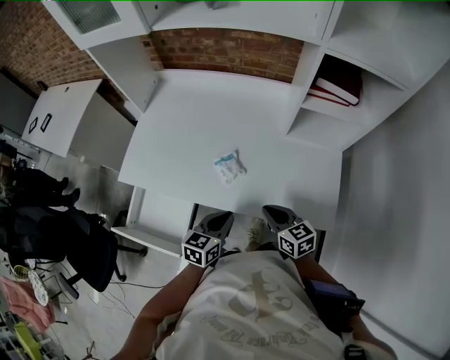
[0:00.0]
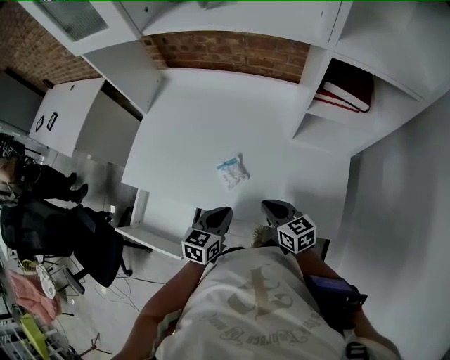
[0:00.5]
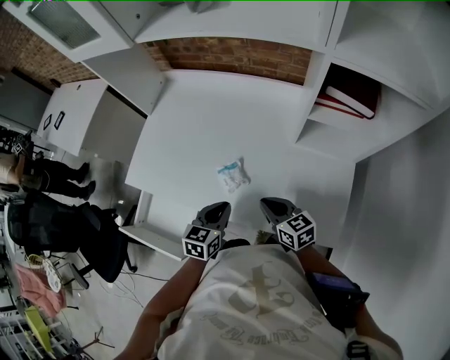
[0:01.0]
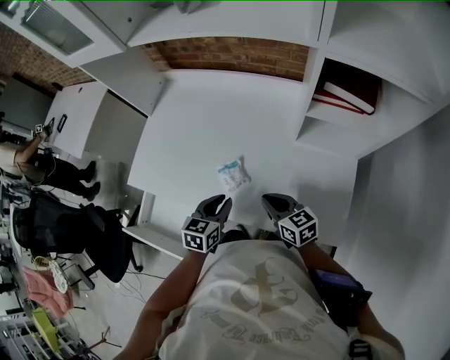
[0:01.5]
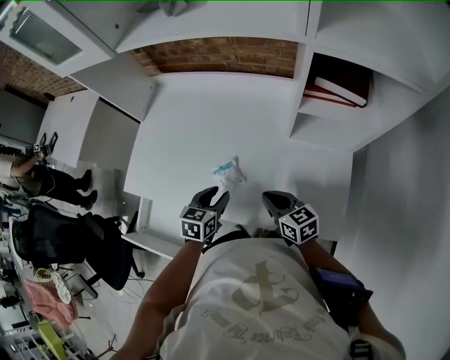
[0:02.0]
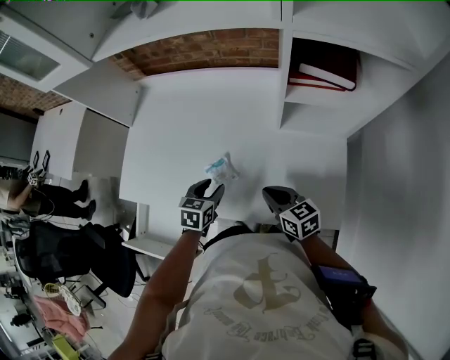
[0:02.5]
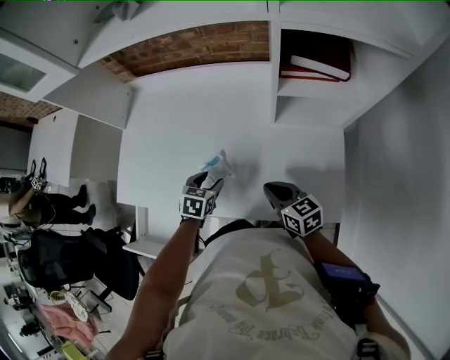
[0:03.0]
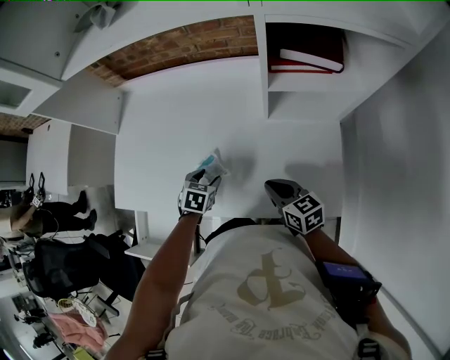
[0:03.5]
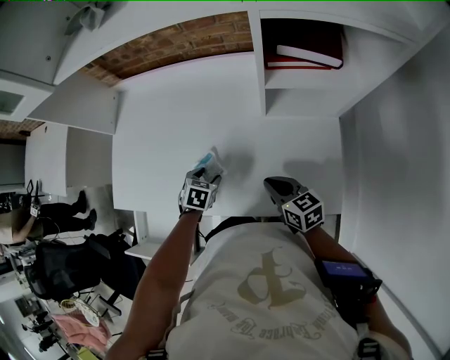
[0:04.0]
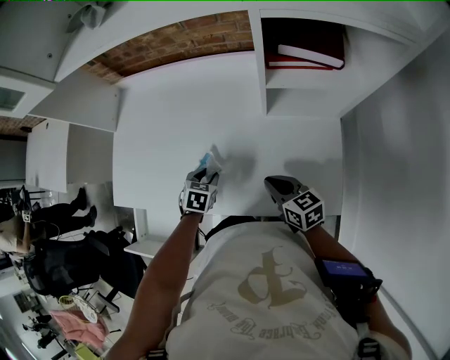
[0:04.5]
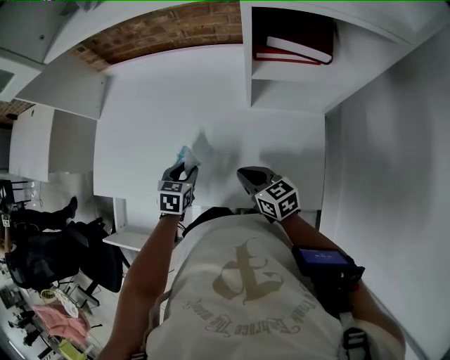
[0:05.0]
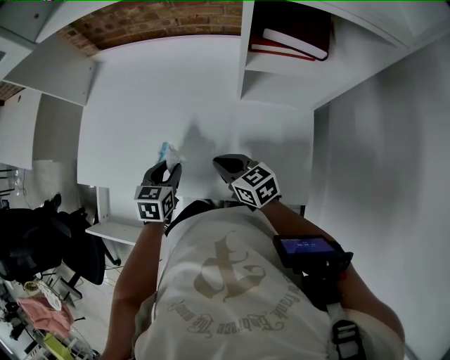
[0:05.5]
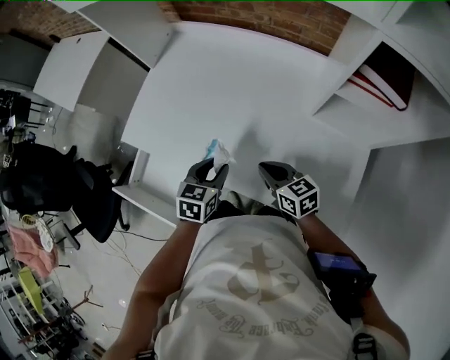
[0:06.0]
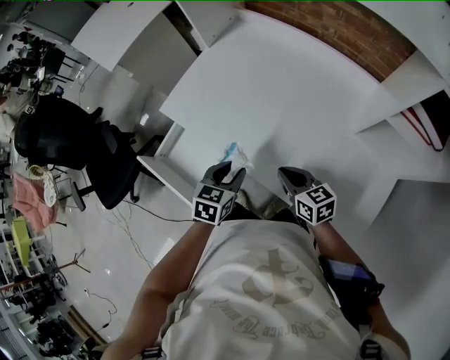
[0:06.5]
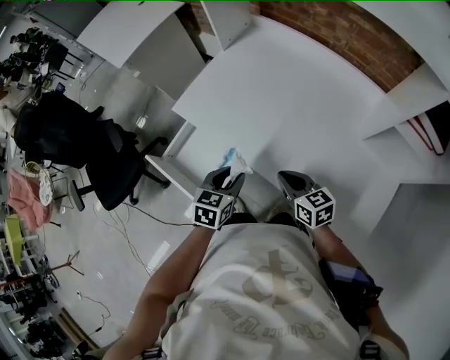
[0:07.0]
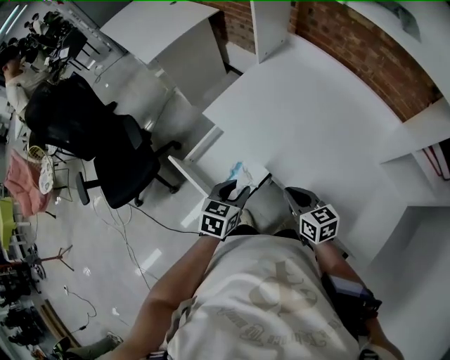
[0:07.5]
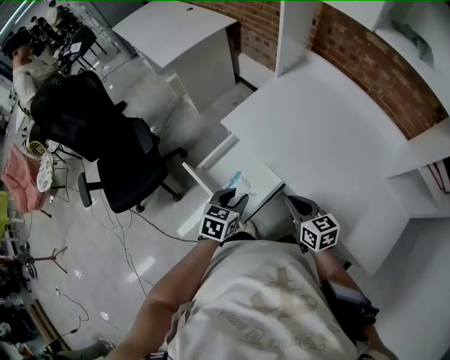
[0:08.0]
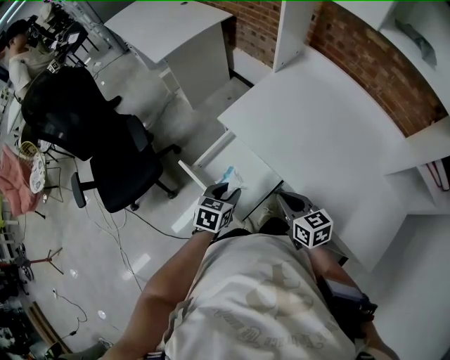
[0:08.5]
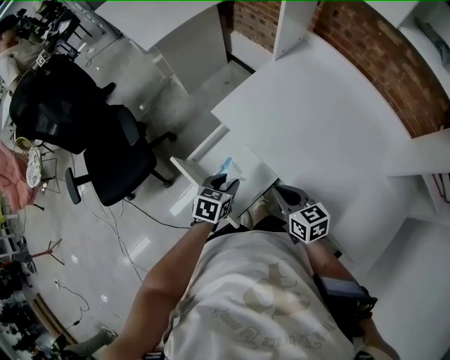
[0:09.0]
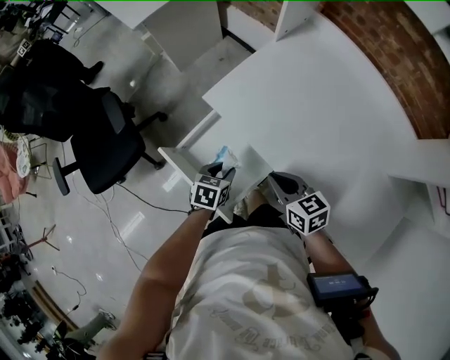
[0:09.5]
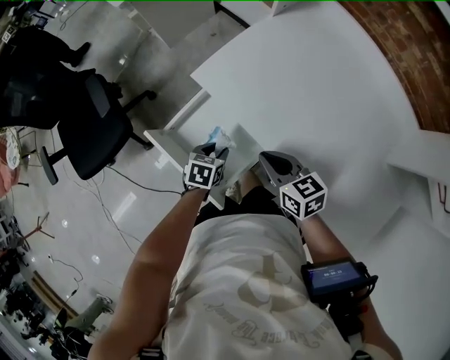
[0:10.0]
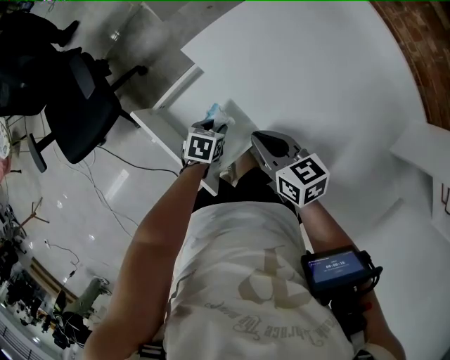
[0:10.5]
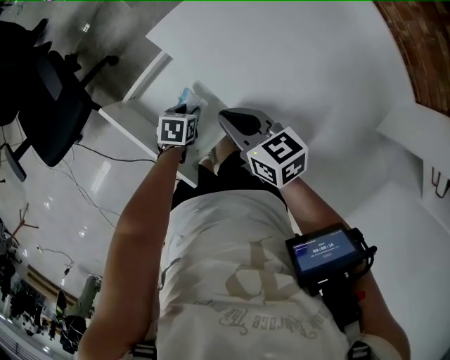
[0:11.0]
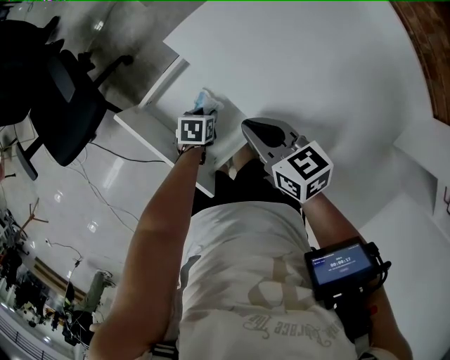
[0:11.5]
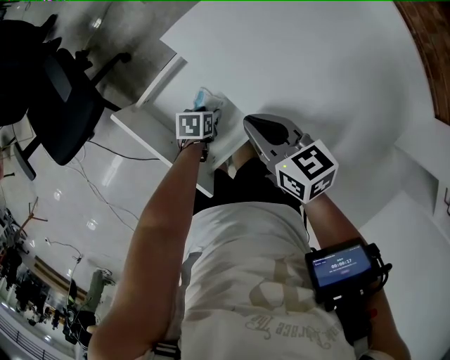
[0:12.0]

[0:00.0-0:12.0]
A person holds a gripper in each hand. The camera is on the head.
0:00.0 to 0:02.0: The grippers both shift forward by about 10 cm. The left gripper opens.
0:02.0 to 0:04.0: The left gripper travels downward and forward by approximately 15 cm, swivels approximately 30 degrees, and opens up. Meanwhile the right gripper shifts by approximately 5 cm.
0:04.0 to 0:06.0: The left gripper heads upward and backward, covering about 15 cm, changes its angle by approximately 30 degrees, and closes its fingers; the right gripper heads to the left, covering about 10 cm, and rotates about 20 degrees.
0:06.0 to 0:08.0: The grippers both shift to the left by about 30 cm.
0:08.0 to 0:10.0: The right gripper travels forward and downward by about 15 cm. Meanwhile the left gripper goes approximately 20 cm downward and forward, and swivels some 20 degrees.
0:10.0 to 0:12.0: The left gripper is displaced downward by approximately 10 cm, and swivels roughly 20 degrees.

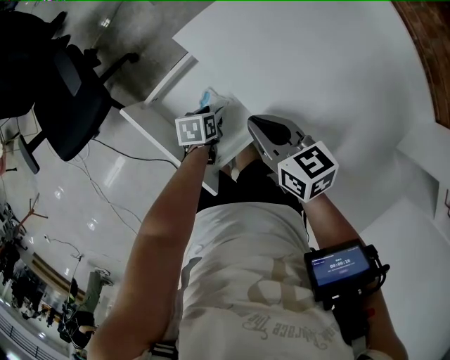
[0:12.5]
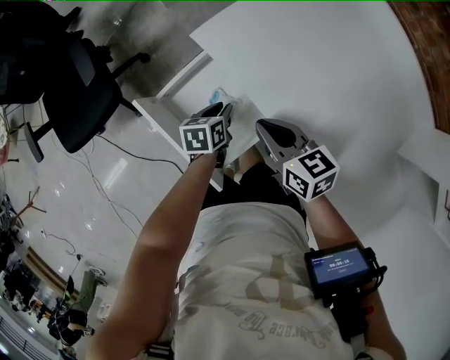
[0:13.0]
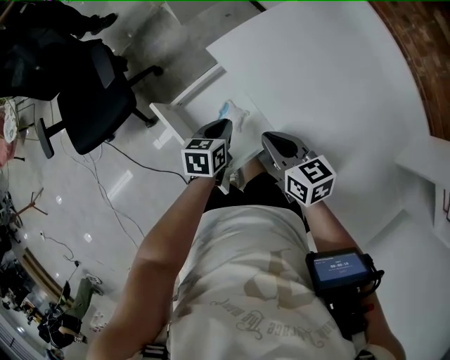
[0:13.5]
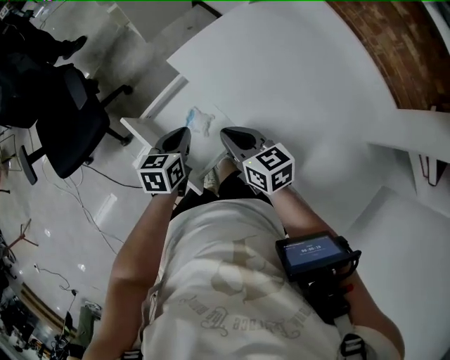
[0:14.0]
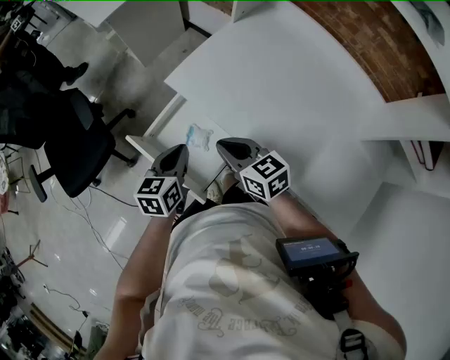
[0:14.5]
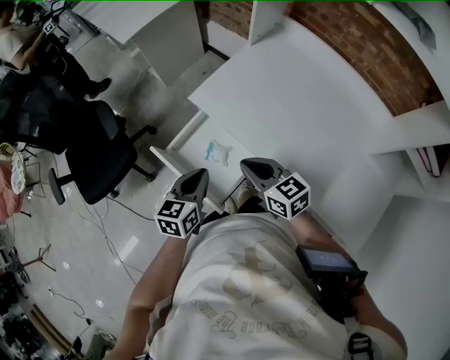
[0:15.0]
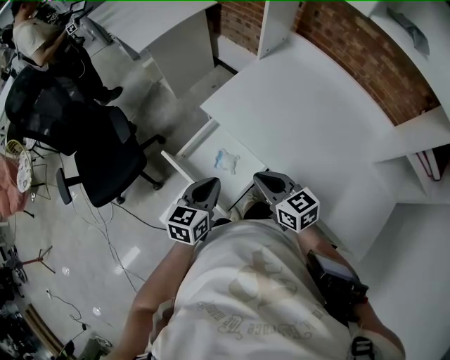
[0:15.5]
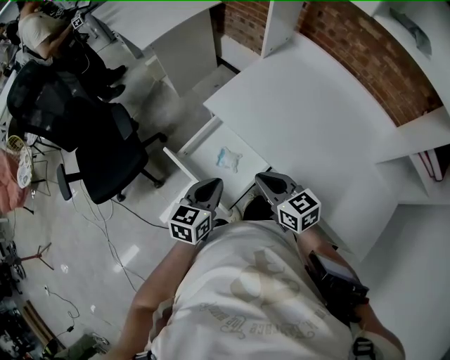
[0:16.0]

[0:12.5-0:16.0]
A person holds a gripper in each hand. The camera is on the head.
0:12.5 to 0:14.5: The right gripper travels upward by some 5 cm. Meanwhile the left gripper shifts roughly 25 cm upward, swivels some 40 degrees, and closes.
0:14.5 to 0:16.0: Both grippers travel together backward, approximately 5 cm.

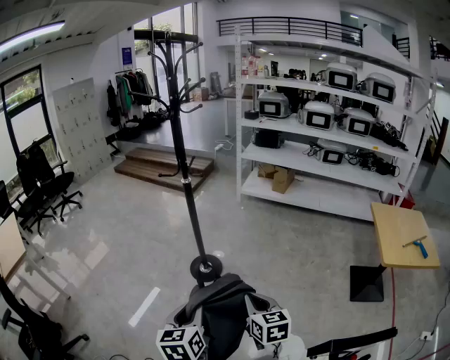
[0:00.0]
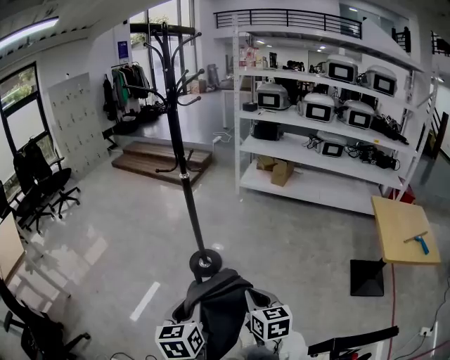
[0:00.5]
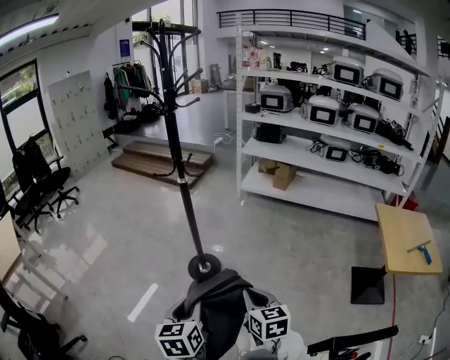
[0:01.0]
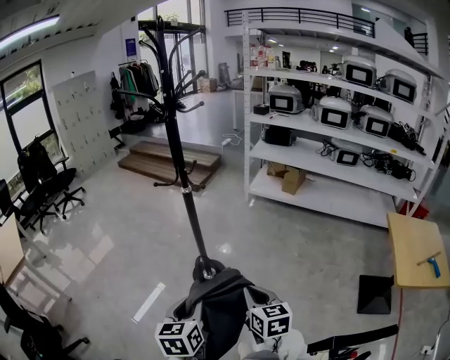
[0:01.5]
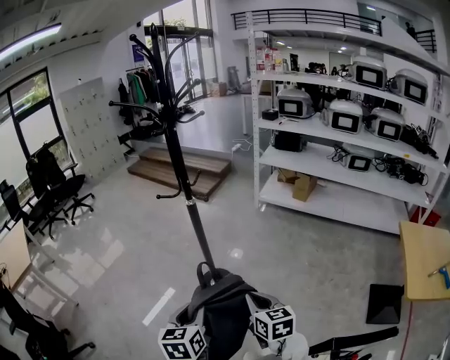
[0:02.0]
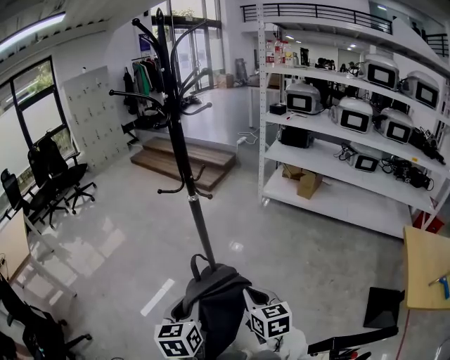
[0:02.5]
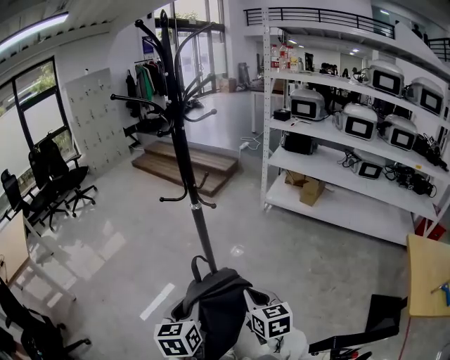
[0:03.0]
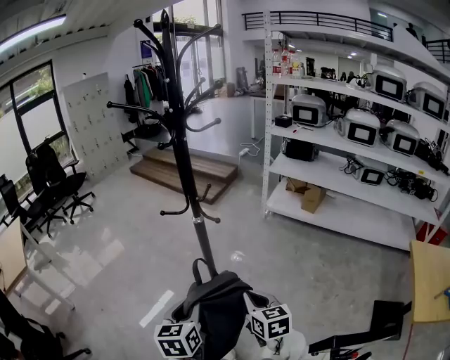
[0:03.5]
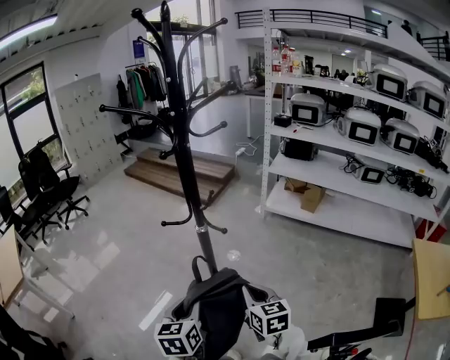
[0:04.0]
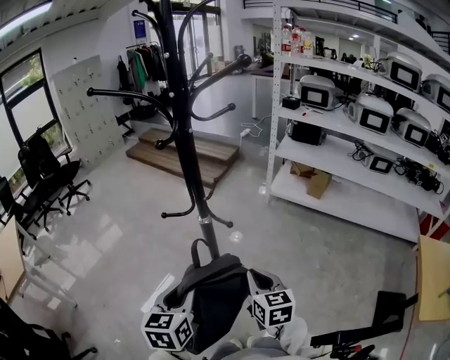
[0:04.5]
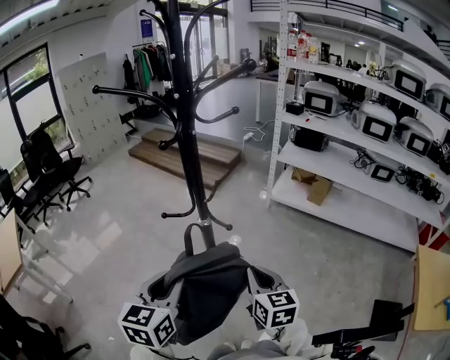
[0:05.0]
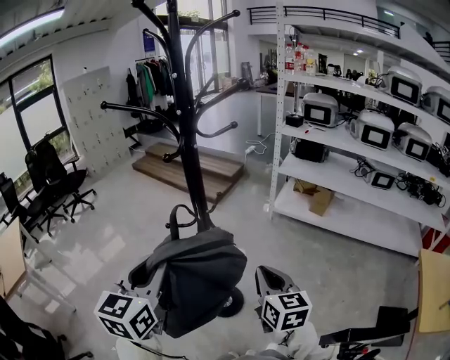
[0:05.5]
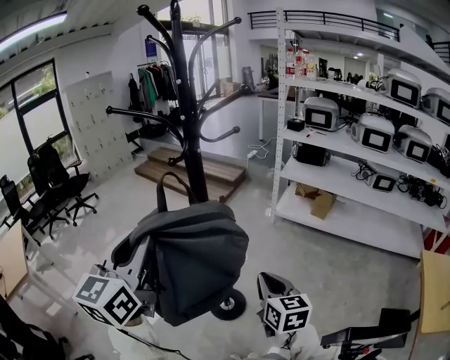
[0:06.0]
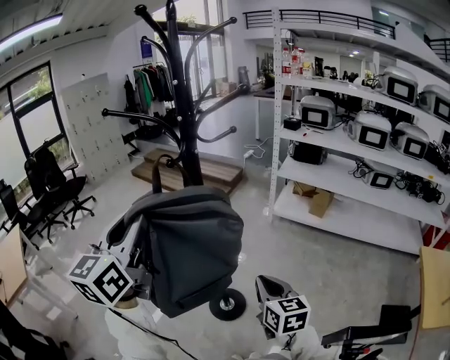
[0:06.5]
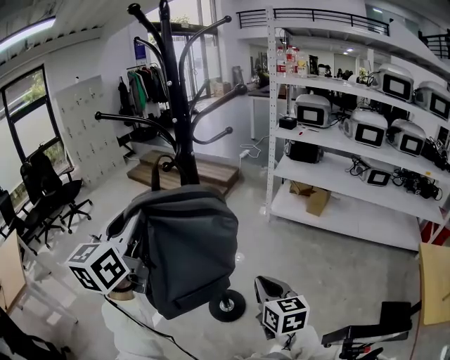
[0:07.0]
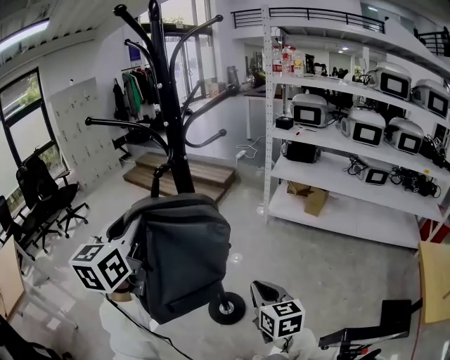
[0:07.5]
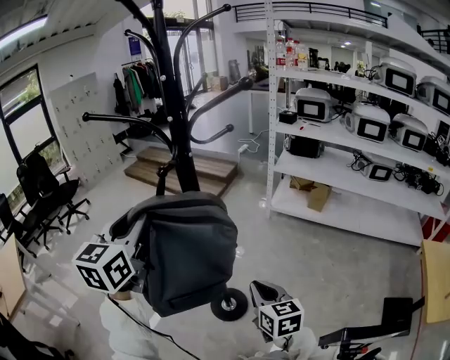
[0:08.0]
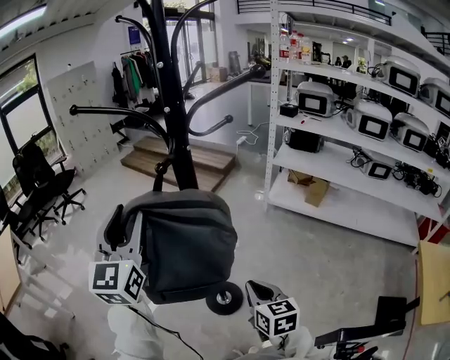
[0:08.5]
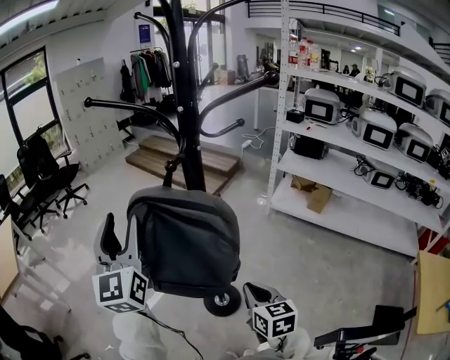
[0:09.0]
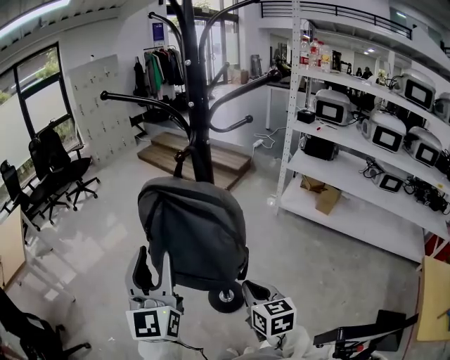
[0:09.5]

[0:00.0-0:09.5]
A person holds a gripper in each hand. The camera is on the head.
0:00.0 to 0:02.0: Both grippers move forward, about 20 cm.
0:02.0 to 0:04.0: The two grippers go about 20 cm forward.
0:04.0 to 0:05.5: The right gripper travels upward by approximately 10 cm; the left gripper shifts some 20 cm upward, and changes its angle by about 20 degrees.
0:05.5 to 0:07.5: The left gripper goes approximately 15 cm forward and upward; the right gripper changes place by approximately 5 cm.
0:07.5 to 0:09.5: The left gripper shifts about 10 cm backward and downward, rotates about 30 degrees, and opens up. Meanwhile the right gripper changes place by approximately 5 cm.

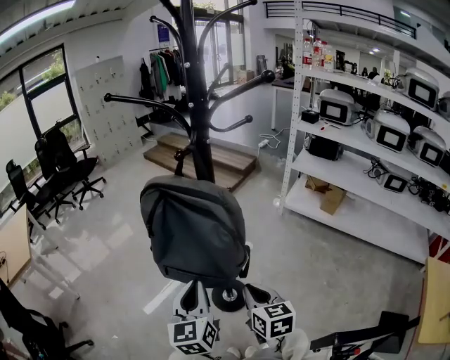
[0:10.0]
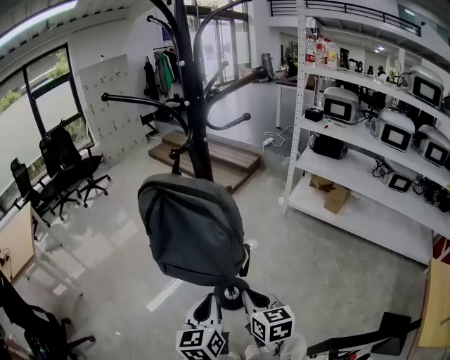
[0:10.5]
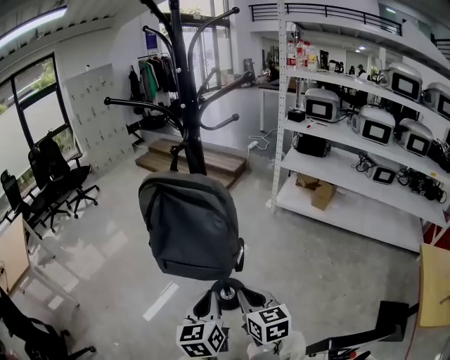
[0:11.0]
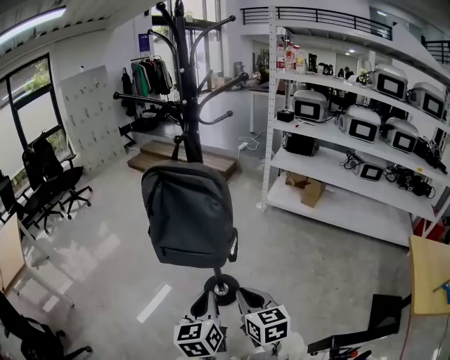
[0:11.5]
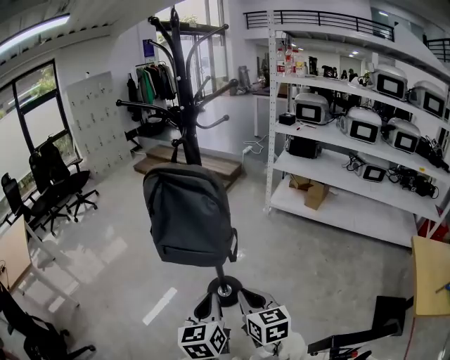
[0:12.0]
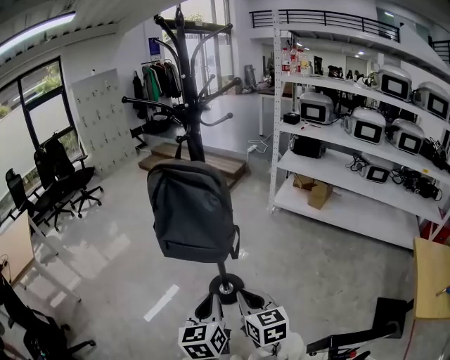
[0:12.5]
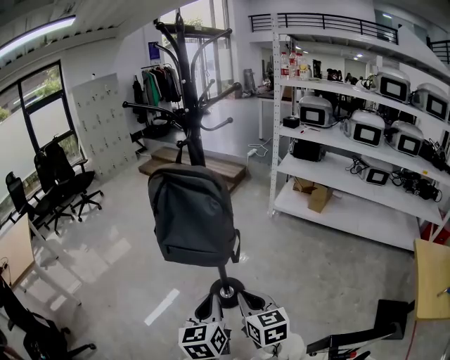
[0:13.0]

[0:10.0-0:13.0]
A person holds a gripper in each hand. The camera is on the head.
0:10.0 to 0:11.5: The grippers both shift backward by some 10 cm.
0:11.5 to 0:13.0: The grippers move only a little.
